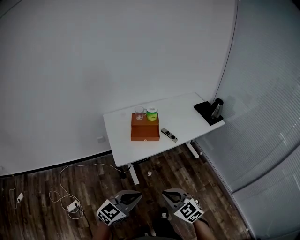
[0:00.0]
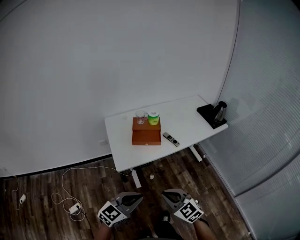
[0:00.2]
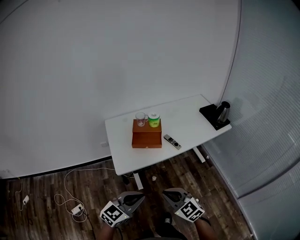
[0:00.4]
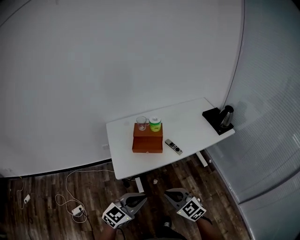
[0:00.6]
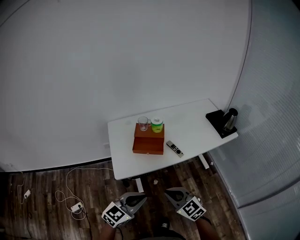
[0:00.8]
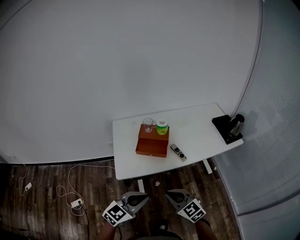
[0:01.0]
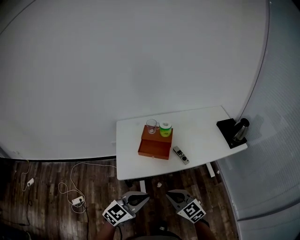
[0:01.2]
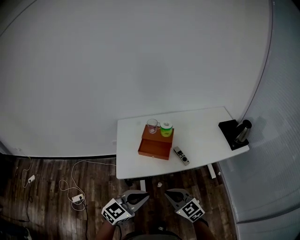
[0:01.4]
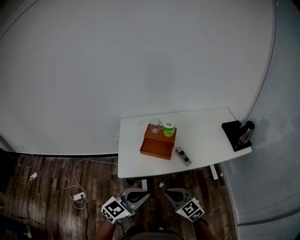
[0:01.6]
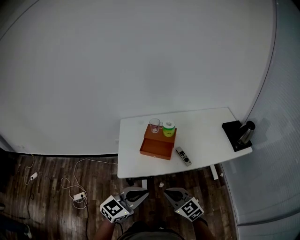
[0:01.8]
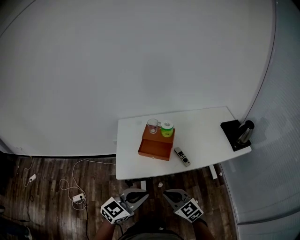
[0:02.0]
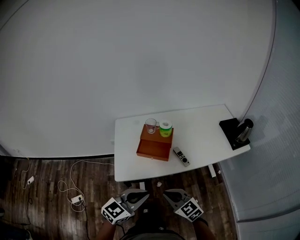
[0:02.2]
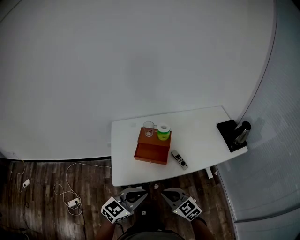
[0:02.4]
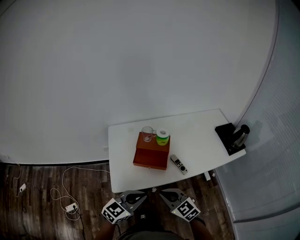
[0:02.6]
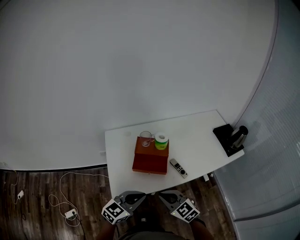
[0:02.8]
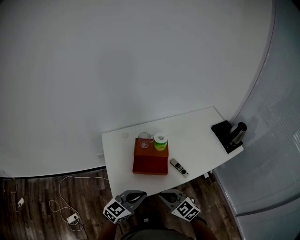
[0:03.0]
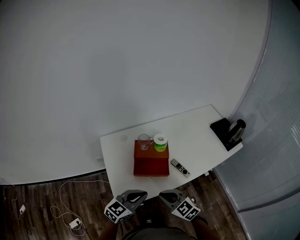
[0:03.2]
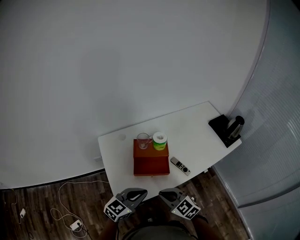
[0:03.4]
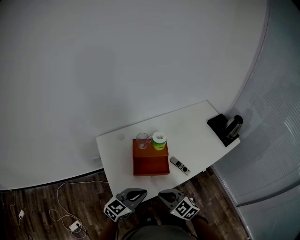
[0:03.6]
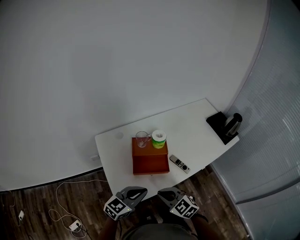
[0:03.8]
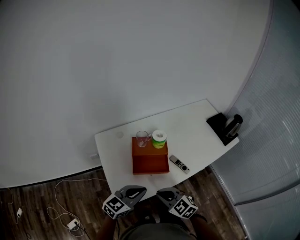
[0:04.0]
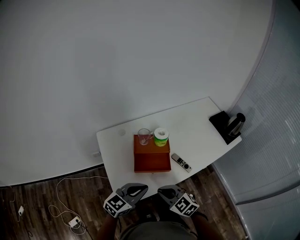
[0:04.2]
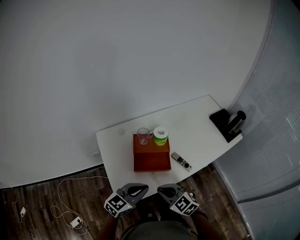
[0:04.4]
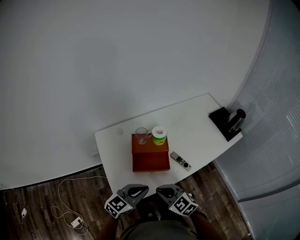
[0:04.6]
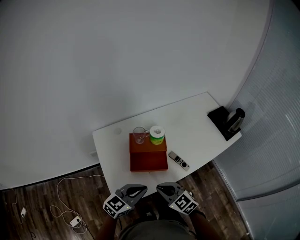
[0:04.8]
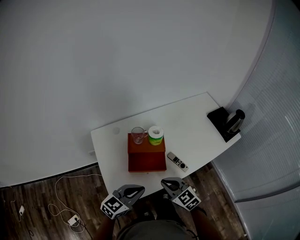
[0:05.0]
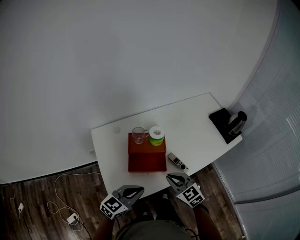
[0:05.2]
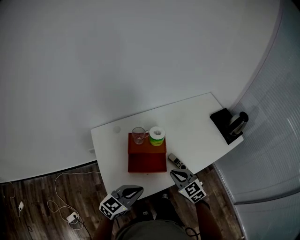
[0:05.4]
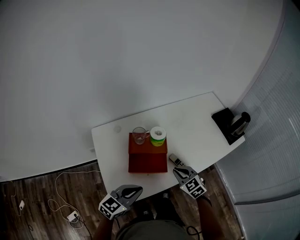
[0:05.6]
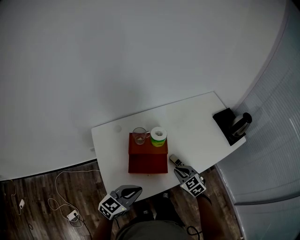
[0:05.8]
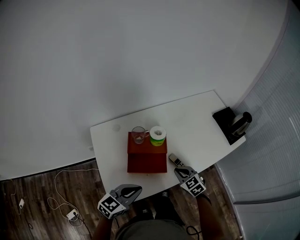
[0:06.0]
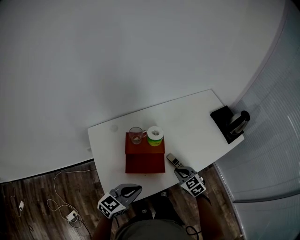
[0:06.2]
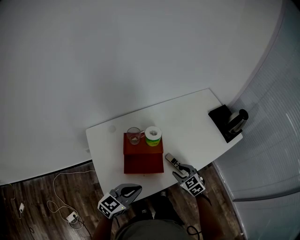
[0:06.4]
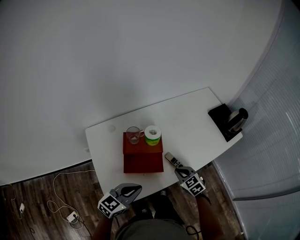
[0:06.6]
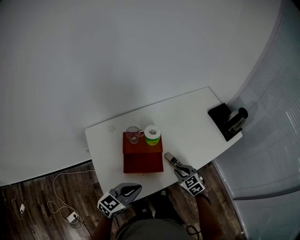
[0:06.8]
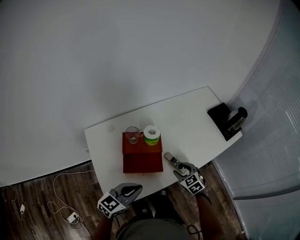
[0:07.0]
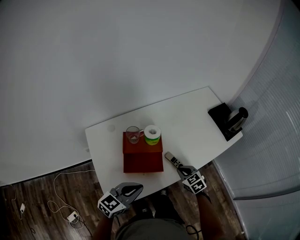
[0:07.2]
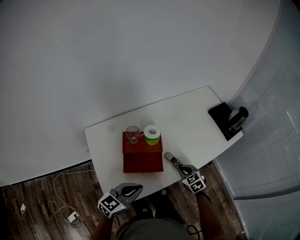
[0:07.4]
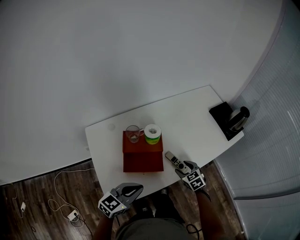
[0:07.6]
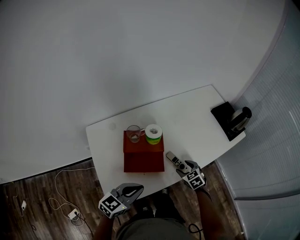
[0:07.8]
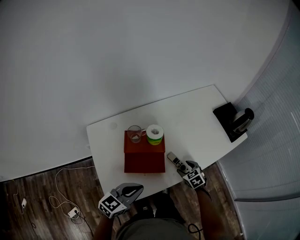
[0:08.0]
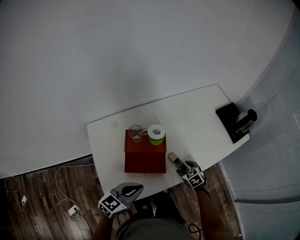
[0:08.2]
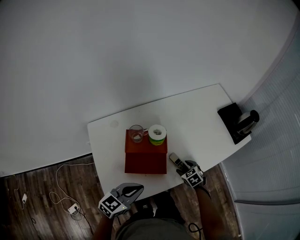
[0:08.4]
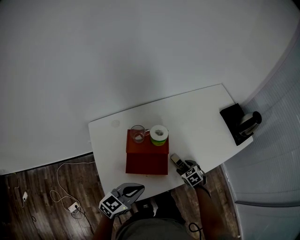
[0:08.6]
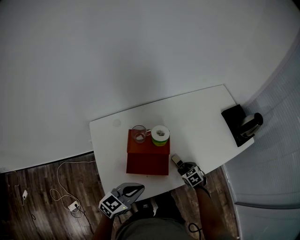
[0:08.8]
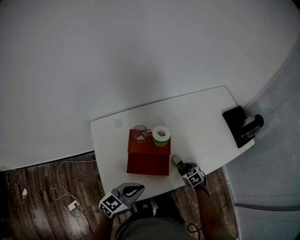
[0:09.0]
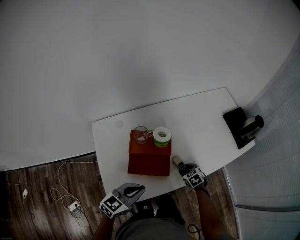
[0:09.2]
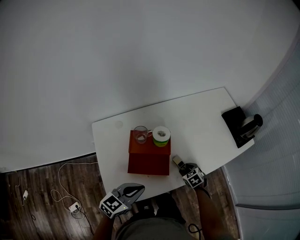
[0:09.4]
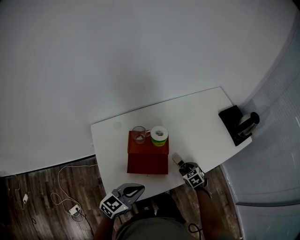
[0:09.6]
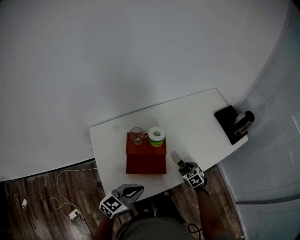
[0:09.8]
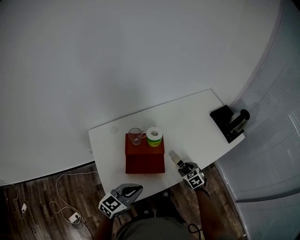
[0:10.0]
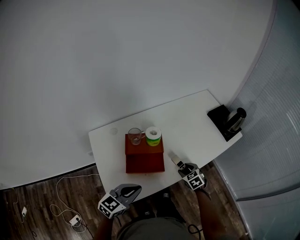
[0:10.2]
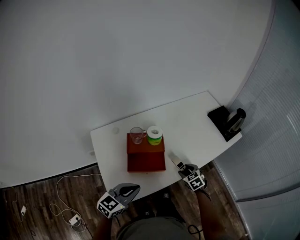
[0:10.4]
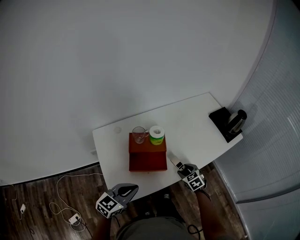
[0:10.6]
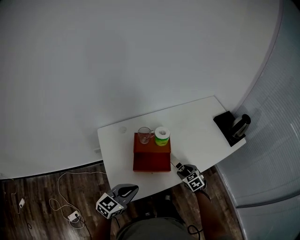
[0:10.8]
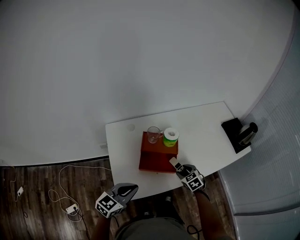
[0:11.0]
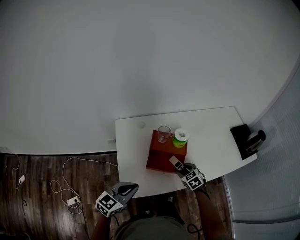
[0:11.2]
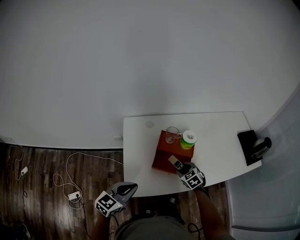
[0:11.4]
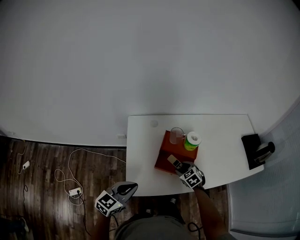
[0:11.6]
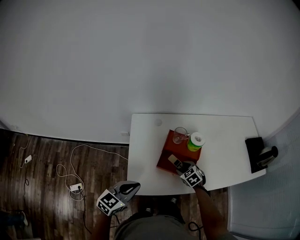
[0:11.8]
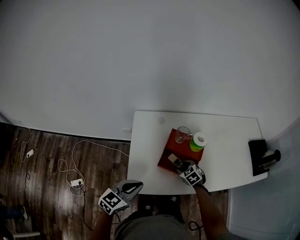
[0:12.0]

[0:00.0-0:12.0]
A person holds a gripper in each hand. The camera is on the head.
0.0 to 1.6 s: Both grippers move forward and to the right, some 20 cm.
1.6 to 3.0 s: The left gripper is displaced forward by roughly 15 cm. The right gripper shifts some 15 cm forward and to the left.
3.0 to 4.4 s: The right gripper changes place by about 5 cm; the left gripper shifts by some 5 cm.
4.4 to 6.0 s: The left gripper ends up about 5 cm from where it was; the right gripper travels forward, to the right and downward by some 20 cm.
6.0 to 7.6 s: The right gripper moves to the right, about 5 cm, and opens.
7.6 to 9.0 s: The right gripper travels downward by about 10 cm.
9.0 to 10.4 s: The right gripper moves upward and backward, roughly 10 cm, while the left gripper travels backward by about 5 cm.
10.4 to 12.0 s: The left gripper ends up some 10 cm from where it was, and rotates about 20 degrees, while the right gripper shifts by some 20 cm, and swivels approximately 30 degrees.

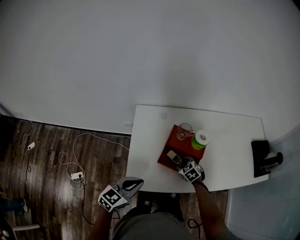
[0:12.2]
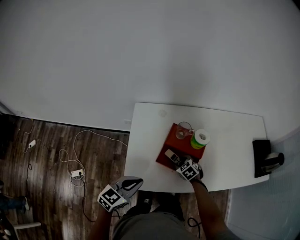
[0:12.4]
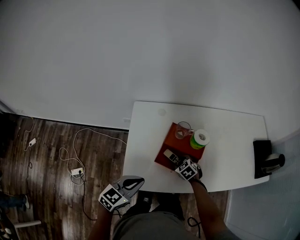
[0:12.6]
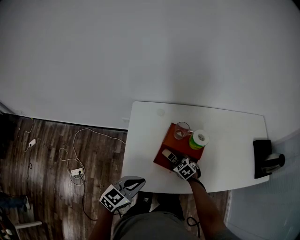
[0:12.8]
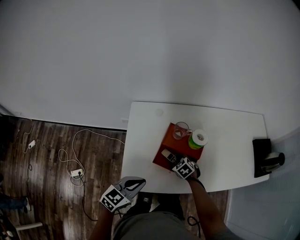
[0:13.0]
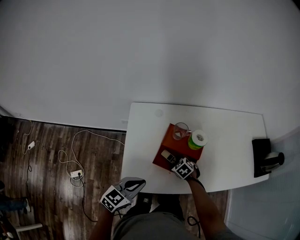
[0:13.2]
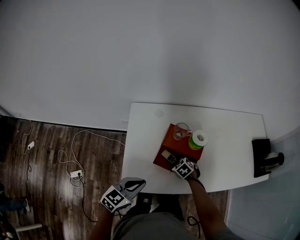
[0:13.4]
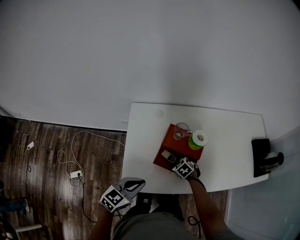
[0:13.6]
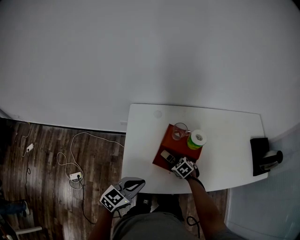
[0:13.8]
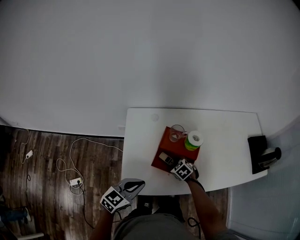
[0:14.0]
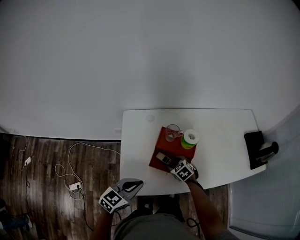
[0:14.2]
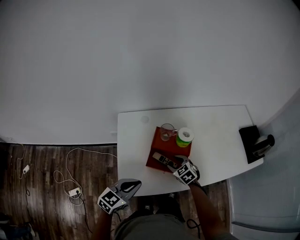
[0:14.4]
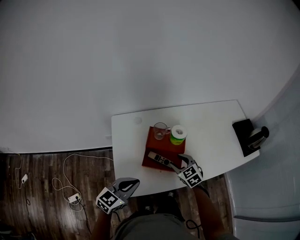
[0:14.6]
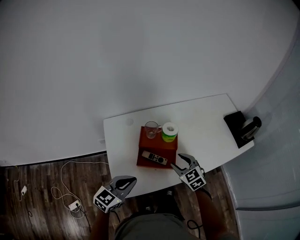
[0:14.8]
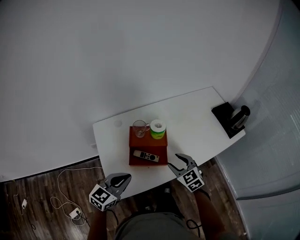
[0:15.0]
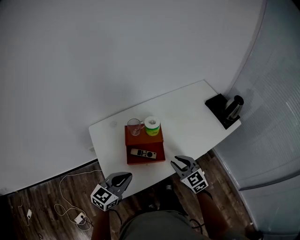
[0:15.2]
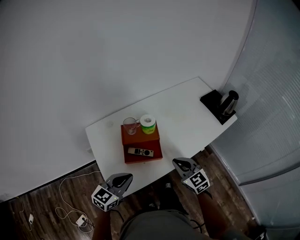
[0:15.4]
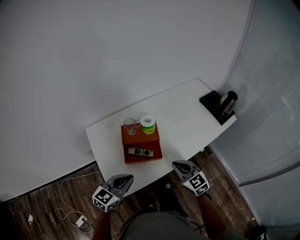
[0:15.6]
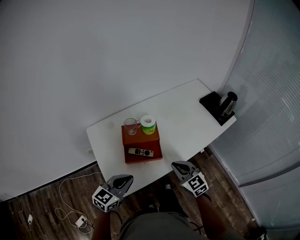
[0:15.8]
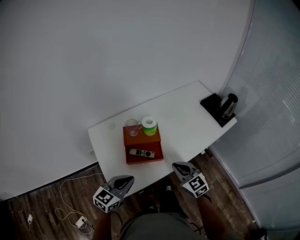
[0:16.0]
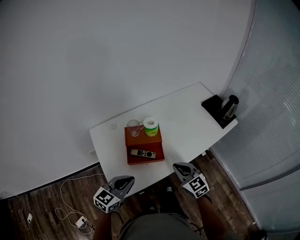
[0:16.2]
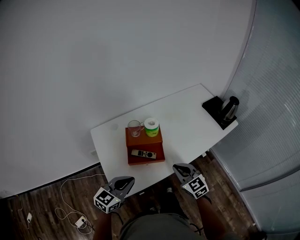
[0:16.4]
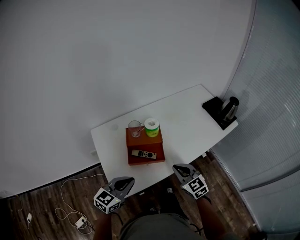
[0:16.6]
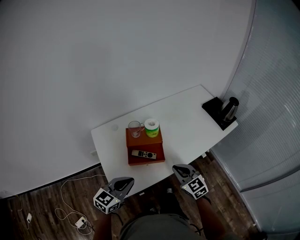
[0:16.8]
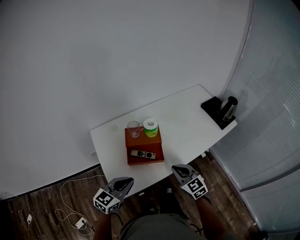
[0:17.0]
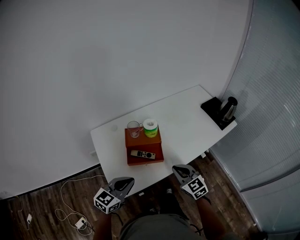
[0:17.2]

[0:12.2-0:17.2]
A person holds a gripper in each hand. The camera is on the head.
12.2 to 13.8 s: The grippers move only a little.
13.8 to 15.6 s: The right gripper goes approximately 20 cm upward, tips its fingers upward by roughly 40 degrees, and closes its fingers; the left gripper ends up roughly 5 cm from where it was, and rotates roughly 20 degrees.
15.6 to 17.2 s: The grippers make only small movements.

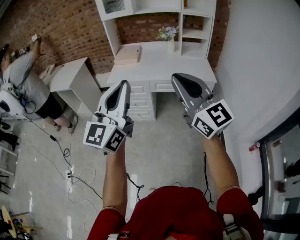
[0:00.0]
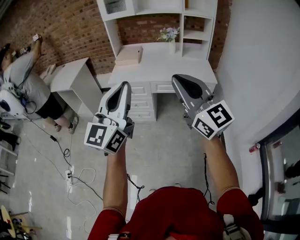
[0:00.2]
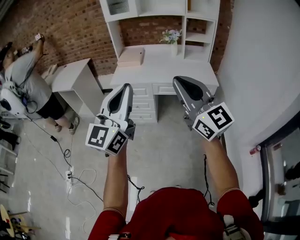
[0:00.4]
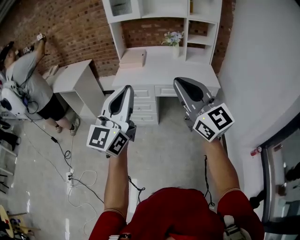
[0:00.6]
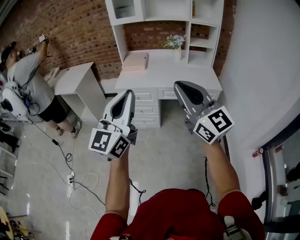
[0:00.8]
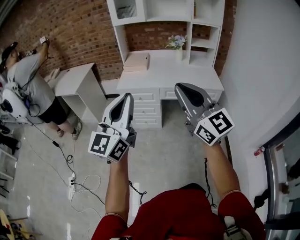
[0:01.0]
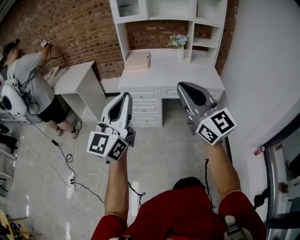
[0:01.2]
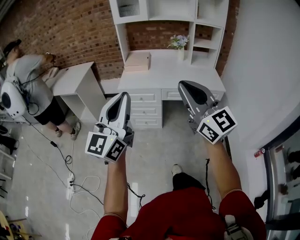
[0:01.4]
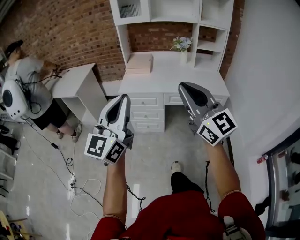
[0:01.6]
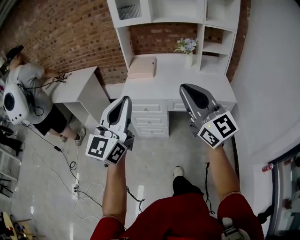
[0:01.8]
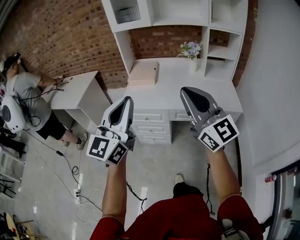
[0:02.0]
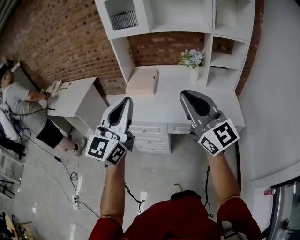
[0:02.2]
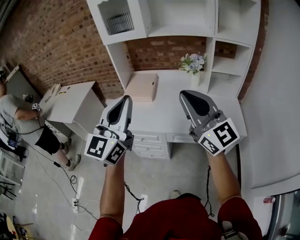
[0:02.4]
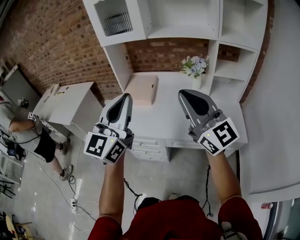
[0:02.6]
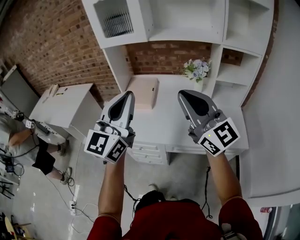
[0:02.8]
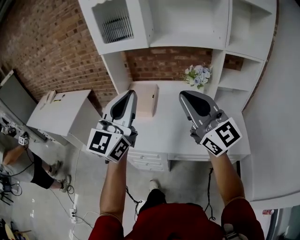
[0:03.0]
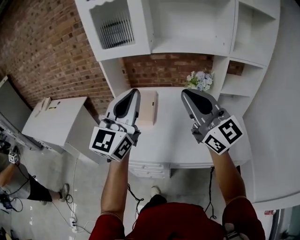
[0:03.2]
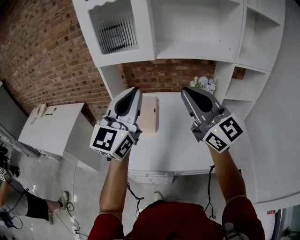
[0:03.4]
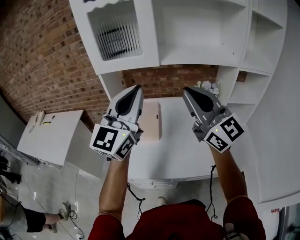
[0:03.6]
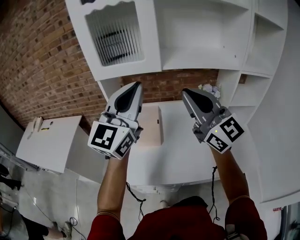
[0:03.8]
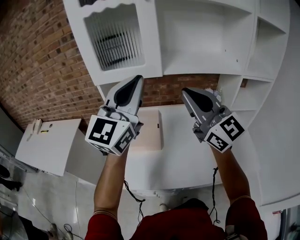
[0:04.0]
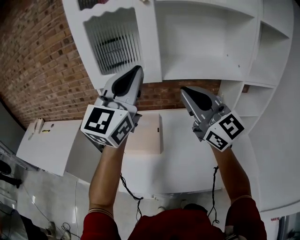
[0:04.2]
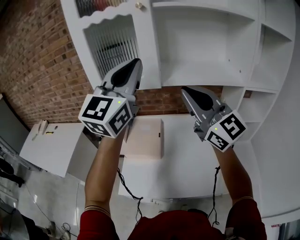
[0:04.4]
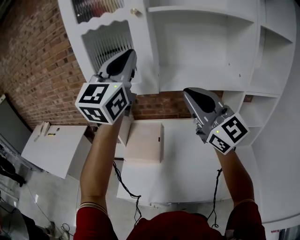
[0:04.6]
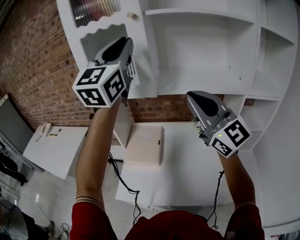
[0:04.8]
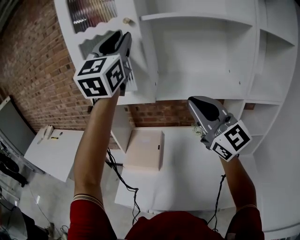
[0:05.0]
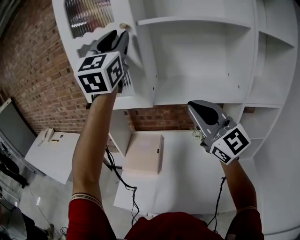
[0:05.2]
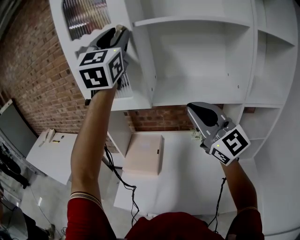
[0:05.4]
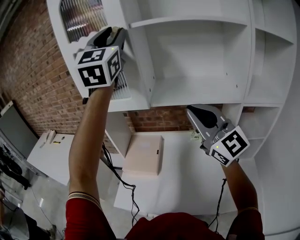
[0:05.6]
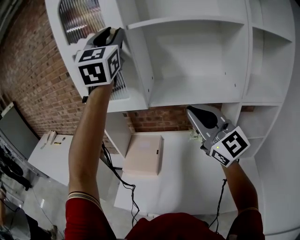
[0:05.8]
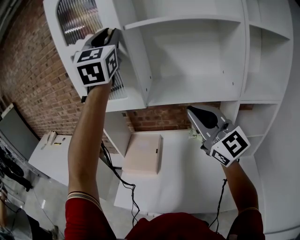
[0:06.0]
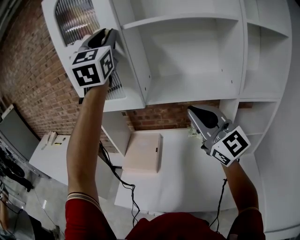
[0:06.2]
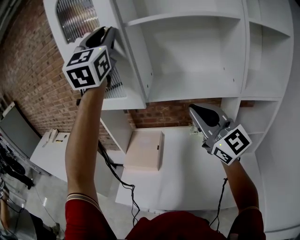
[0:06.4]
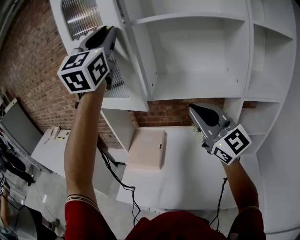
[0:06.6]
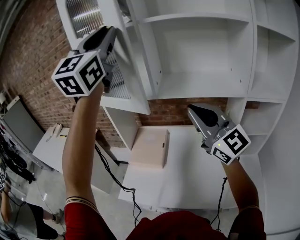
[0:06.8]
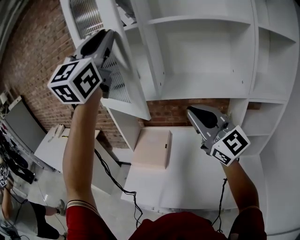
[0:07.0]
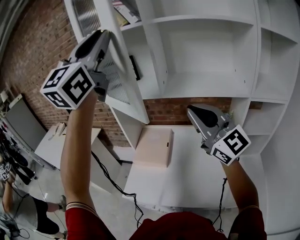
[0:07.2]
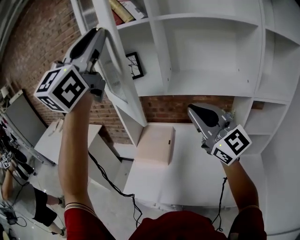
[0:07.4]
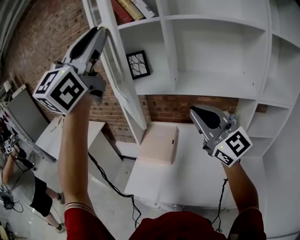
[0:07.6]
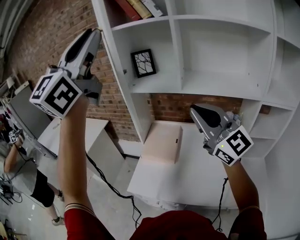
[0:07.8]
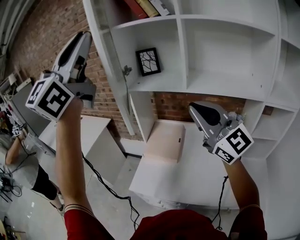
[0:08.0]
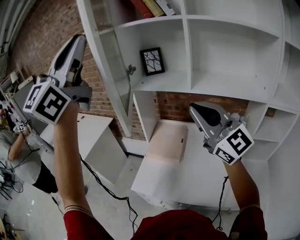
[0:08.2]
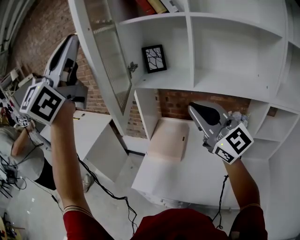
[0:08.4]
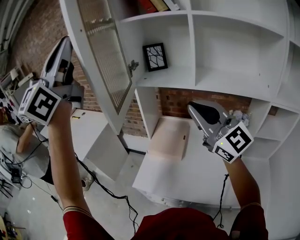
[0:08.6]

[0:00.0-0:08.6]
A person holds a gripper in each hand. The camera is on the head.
0.0 to 1.4 s: The two grippers go some 10 cm to the left.
1.4 to 2.8 s: Both grippers are carried forward, roughly 50 cm.
2.8 to 4.4 s: The right gripper heads forward, covering about 25 cm. The left gripper is displaced forward and upward by approximately 35 cm.
4.4 to 5.8 s: The left gripper moves upward and forward, approximately 20 cm, rotates about 30 degrees, and opens its fingers; the right gripper moves to the right, some 10 cm.
5.8 to 7.2 s: The right gripper travels to the left by about 5 cm. The left gripper shifts roughly 15 cm backward and to the left.
7.2 to 8.6 s: The left gripper heads to the left, covering about 20 cm. The right gripper moves to the left, approximately 10 cm.
